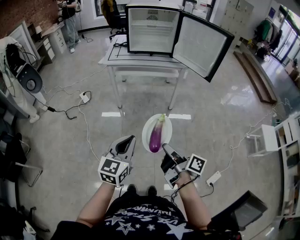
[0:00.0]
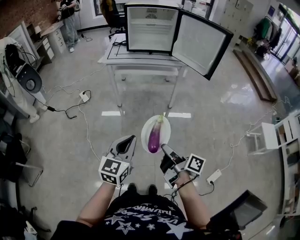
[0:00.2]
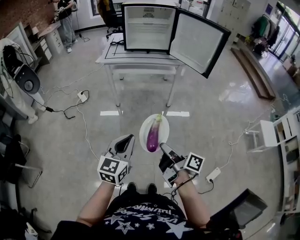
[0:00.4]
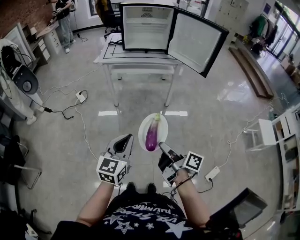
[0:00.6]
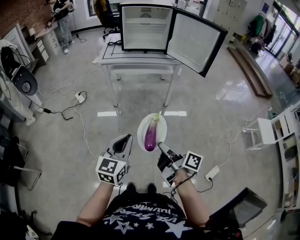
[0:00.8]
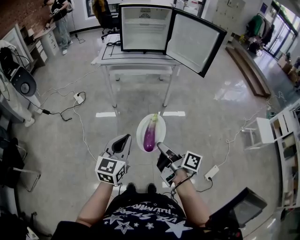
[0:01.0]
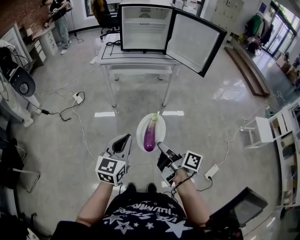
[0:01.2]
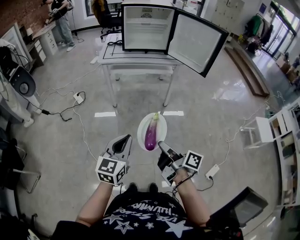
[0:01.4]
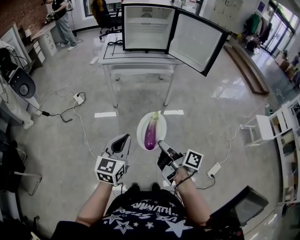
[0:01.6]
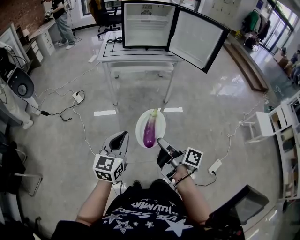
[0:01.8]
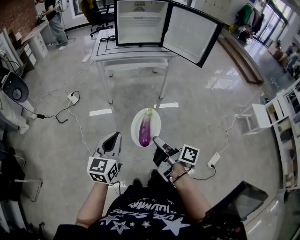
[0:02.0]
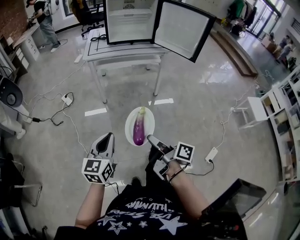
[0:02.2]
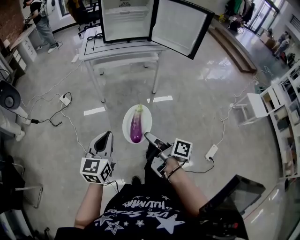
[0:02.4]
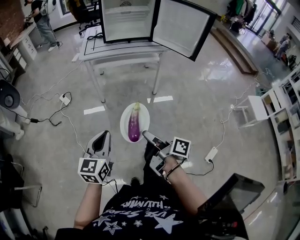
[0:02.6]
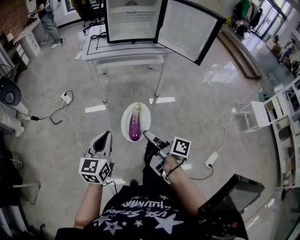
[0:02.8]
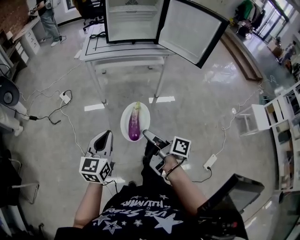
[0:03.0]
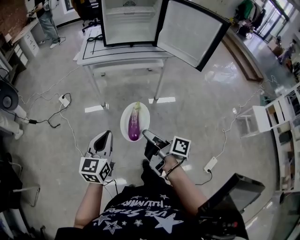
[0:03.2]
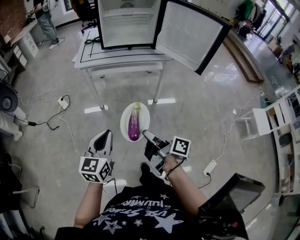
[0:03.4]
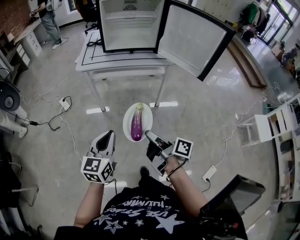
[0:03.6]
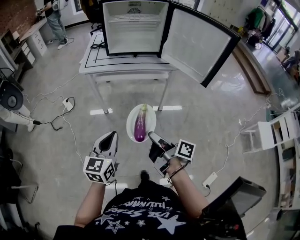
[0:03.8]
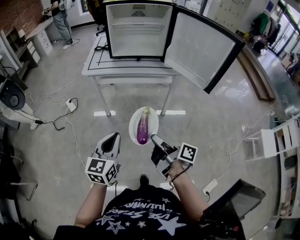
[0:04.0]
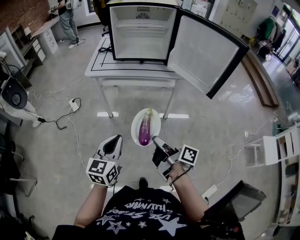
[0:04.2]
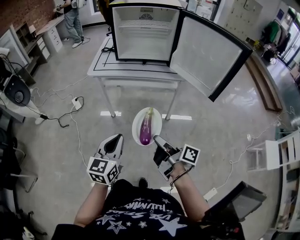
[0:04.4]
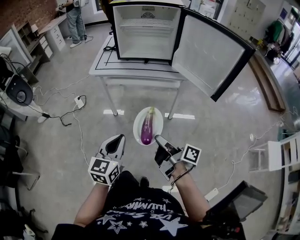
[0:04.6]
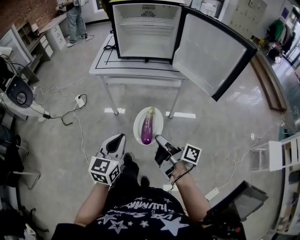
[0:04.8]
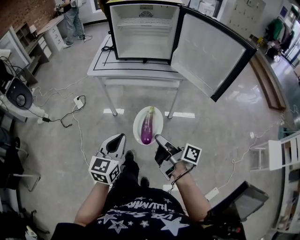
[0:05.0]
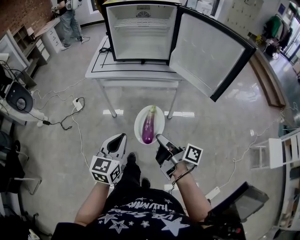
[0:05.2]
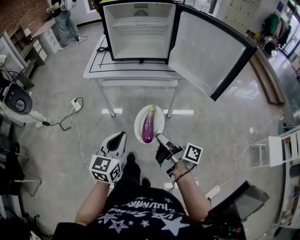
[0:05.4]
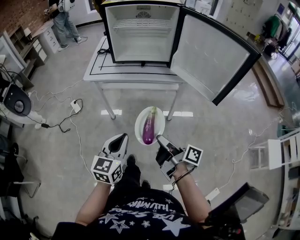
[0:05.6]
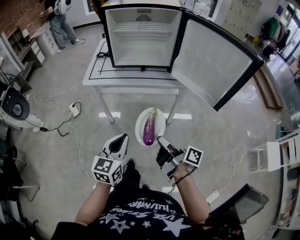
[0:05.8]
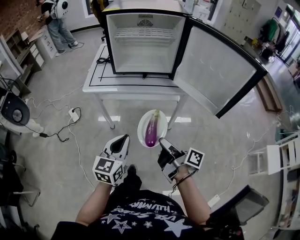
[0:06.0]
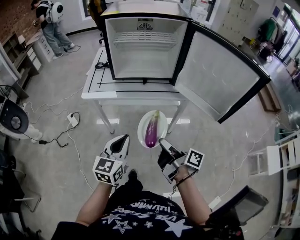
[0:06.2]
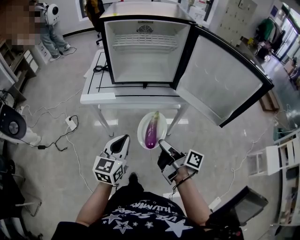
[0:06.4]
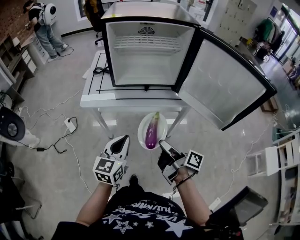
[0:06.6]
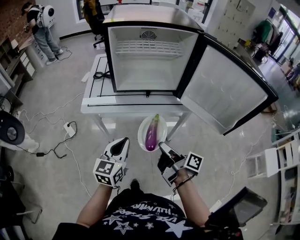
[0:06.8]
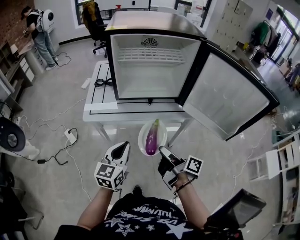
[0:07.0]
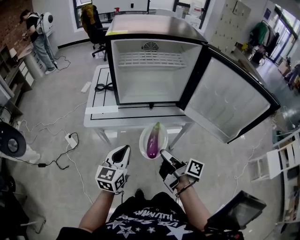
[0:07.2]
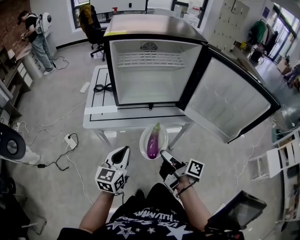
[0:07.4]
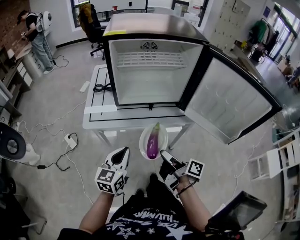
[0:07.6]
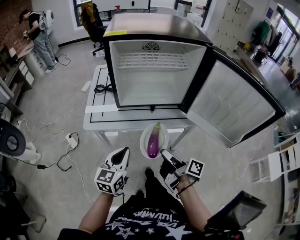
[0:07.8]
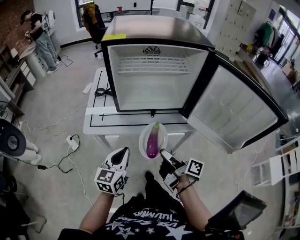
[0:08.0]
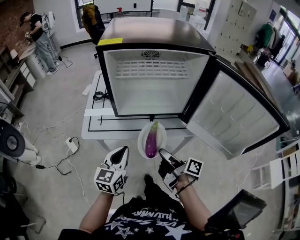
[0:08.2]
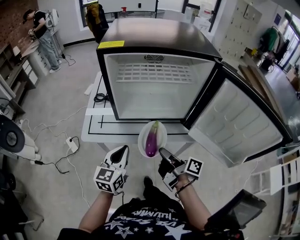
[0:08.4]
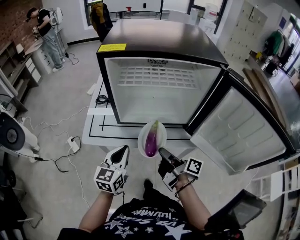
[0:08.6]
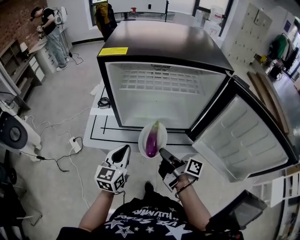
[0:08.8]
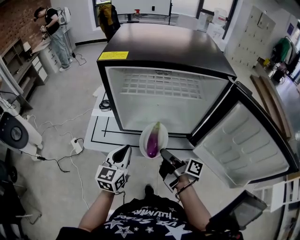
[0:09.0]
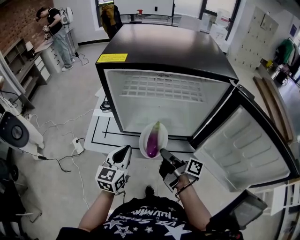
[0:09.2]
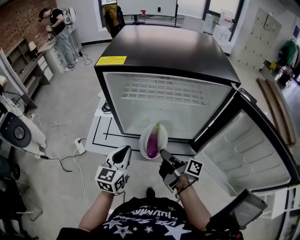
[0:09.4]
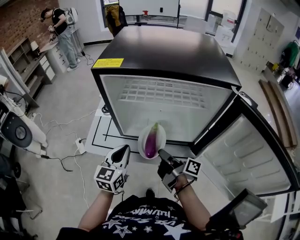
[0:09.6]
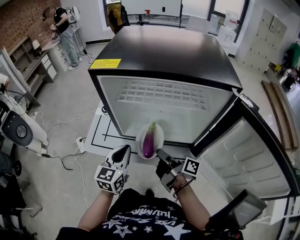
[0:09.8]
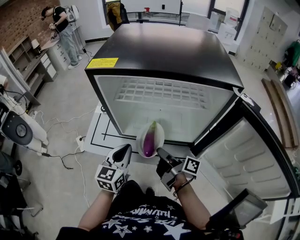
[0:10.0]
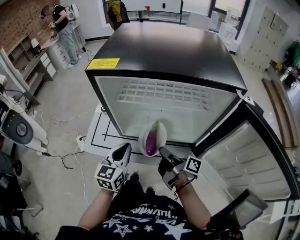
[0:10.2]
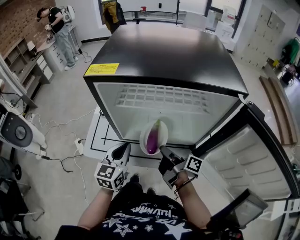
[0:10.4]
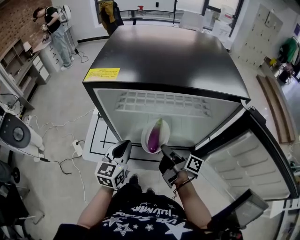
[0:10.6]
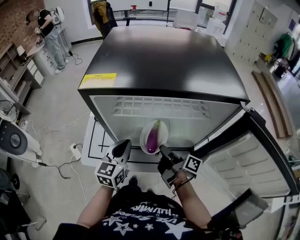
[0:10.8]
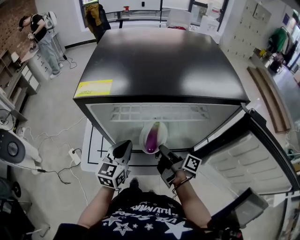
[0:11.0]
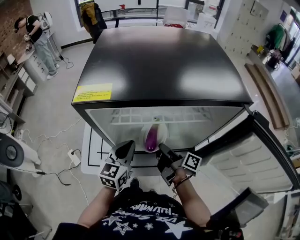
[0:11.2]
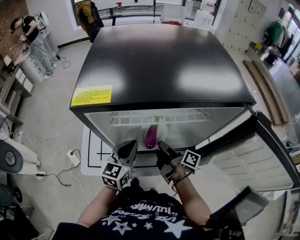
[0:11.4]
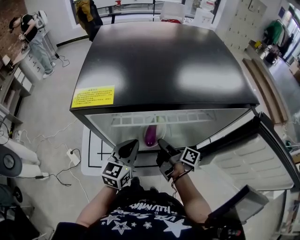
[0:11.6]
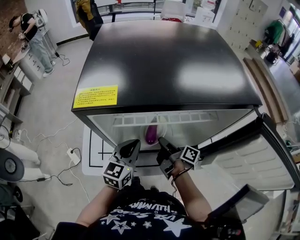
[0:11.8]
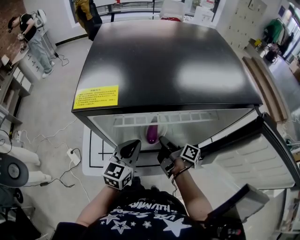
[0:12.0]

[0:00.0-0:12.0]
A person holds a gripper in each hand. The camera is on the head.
0:00.0 to 0:01.6: The left gripper ends up about 5 cm from where it was.
0:01.6 to 0:03.0: The left gripper ends up roughly 10 cm from where it was.
0:03.0 to 0:04.4: The left gripper shifts by about 15 cm.
0:04.4 to 0:06.0: The left gripper changes place by approximately 15 cm.
0:06.0 to 0:07.6: The left gripper shifts by roughly 20 cm.
0:07.6 to 0:09.0: The left gripper moves approximately 15 cm.
0:09.0 to 0:10.4: The left gripper changes place by about 10 cm.
0:10.4 to 0:12.0: The left gripper moves some 10 cm.

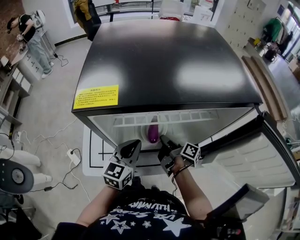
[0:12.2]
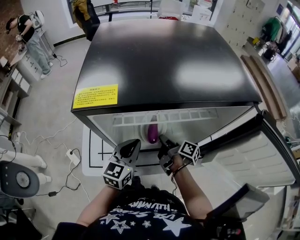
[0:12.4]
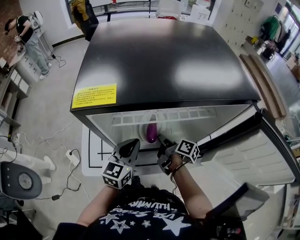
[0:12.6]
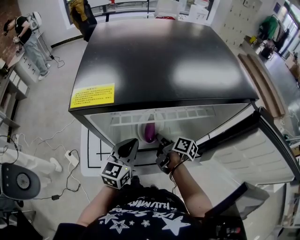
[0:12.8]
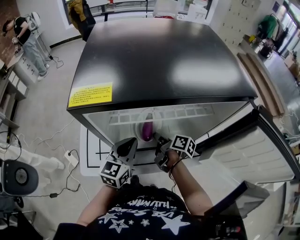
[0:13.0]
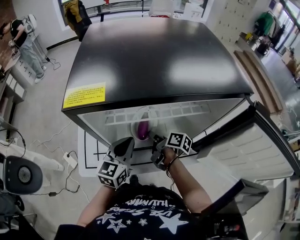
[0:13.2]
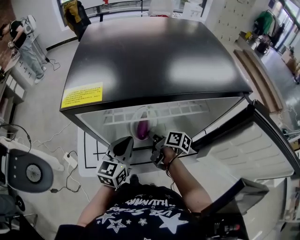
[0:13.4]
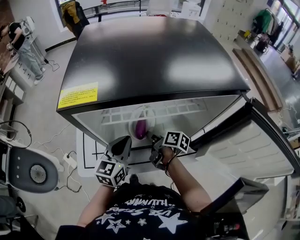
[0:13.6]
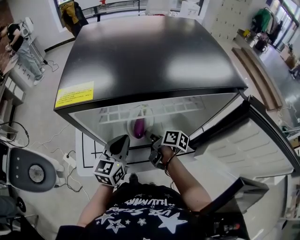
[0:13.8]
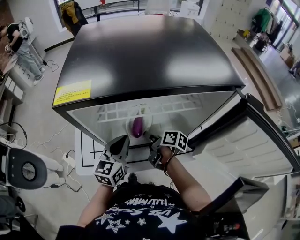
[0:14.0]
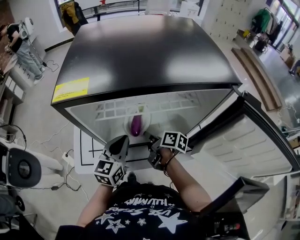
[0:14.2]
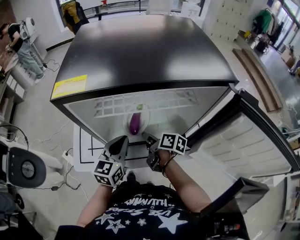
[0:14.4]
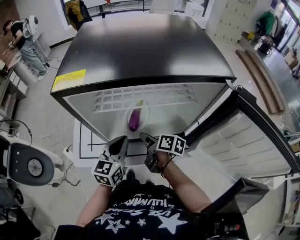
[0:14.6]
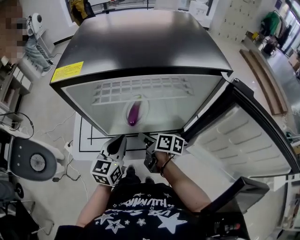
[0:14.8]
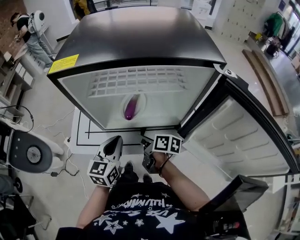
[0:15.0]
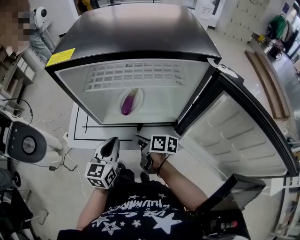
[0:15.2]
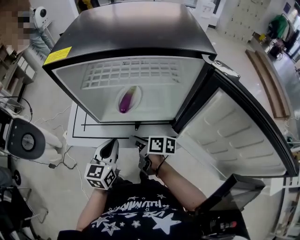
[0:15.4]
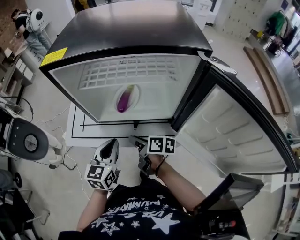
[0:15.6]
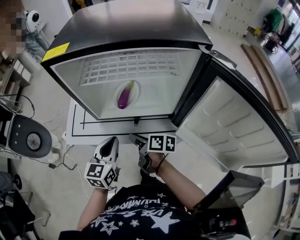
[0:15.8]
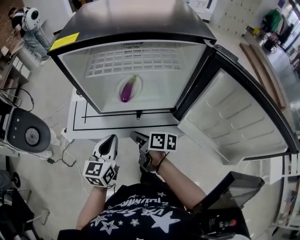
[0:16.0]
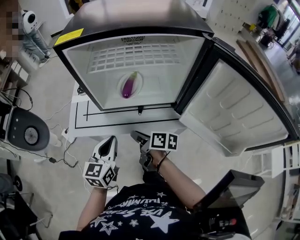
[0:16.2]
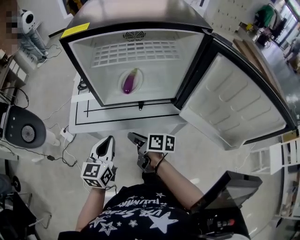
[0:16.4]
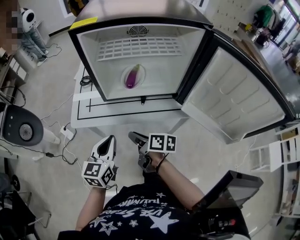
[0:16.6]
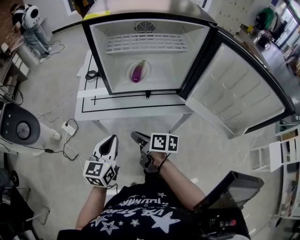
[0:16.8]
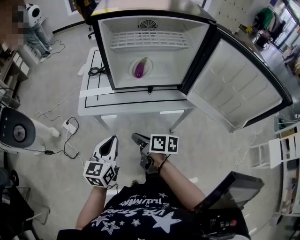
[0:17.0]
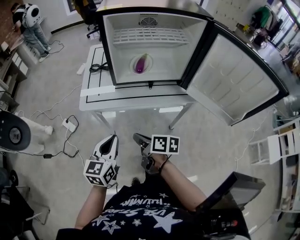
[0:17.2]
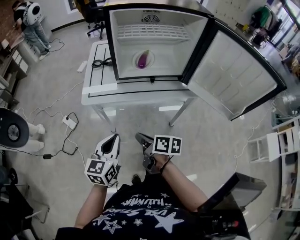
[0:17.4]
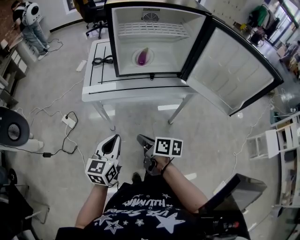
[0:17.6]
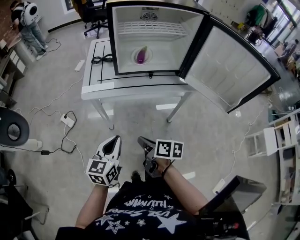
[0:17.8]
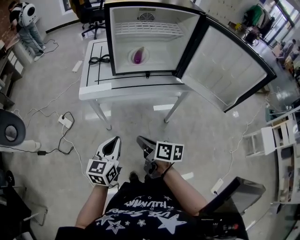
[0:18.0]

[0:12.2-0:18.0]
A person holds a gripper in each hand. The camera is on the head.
0:13.6 to 0:15.0: The left gripper changes place by approximately 10 cm.
0:15.0 to 0:16.6: The left gripper ends up about 15 cm from where it was.
0:16.6 to 0:18.0: The left gripper ends up approximately 20 cm from where it was.

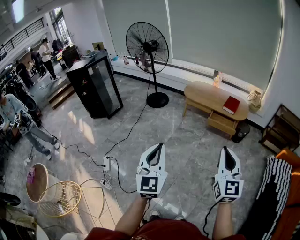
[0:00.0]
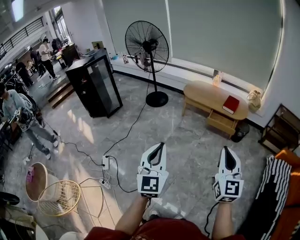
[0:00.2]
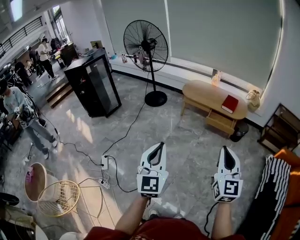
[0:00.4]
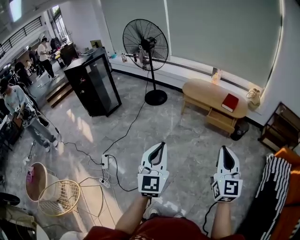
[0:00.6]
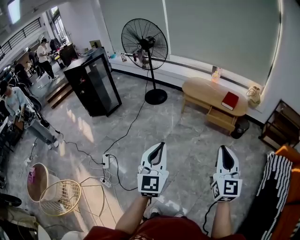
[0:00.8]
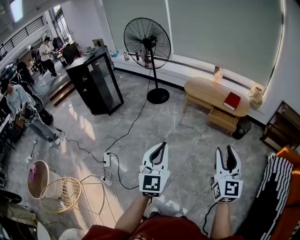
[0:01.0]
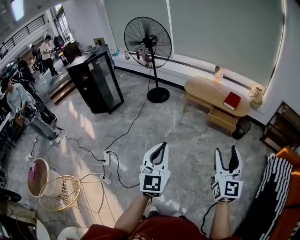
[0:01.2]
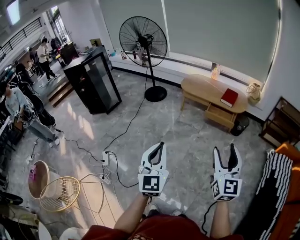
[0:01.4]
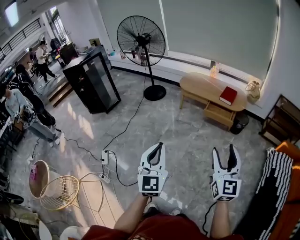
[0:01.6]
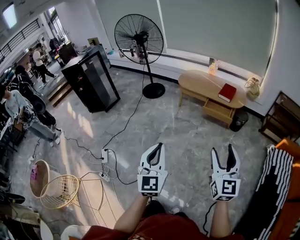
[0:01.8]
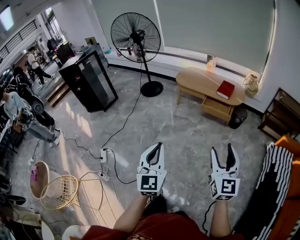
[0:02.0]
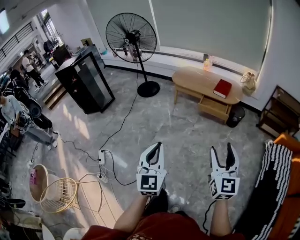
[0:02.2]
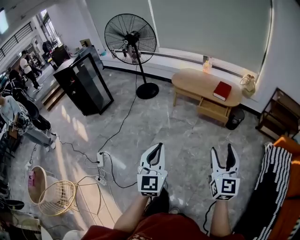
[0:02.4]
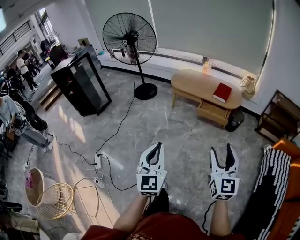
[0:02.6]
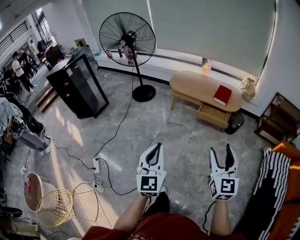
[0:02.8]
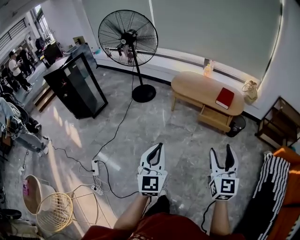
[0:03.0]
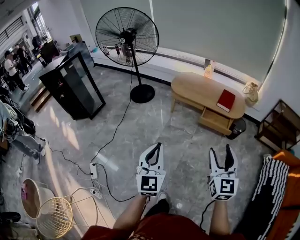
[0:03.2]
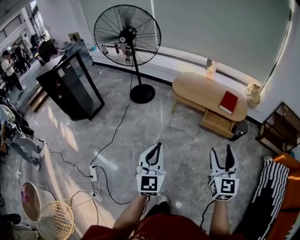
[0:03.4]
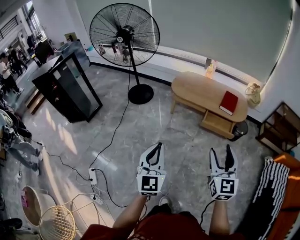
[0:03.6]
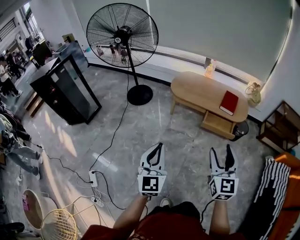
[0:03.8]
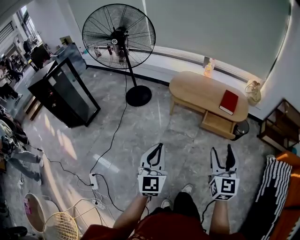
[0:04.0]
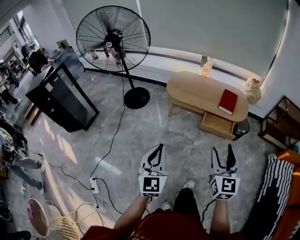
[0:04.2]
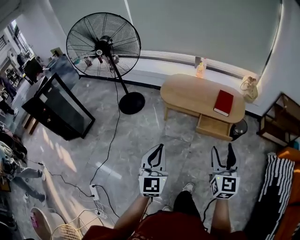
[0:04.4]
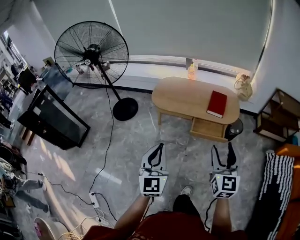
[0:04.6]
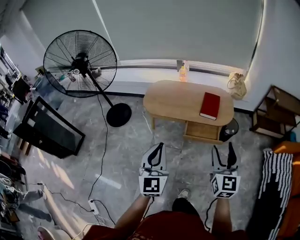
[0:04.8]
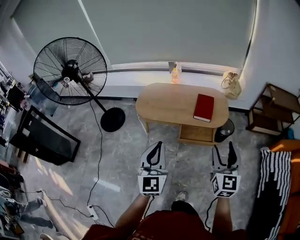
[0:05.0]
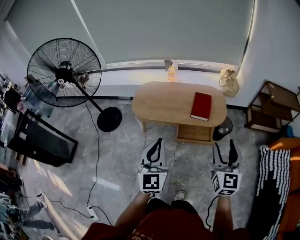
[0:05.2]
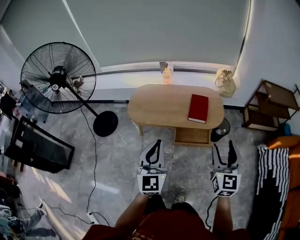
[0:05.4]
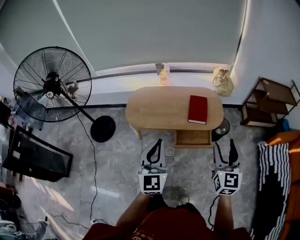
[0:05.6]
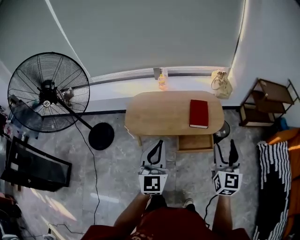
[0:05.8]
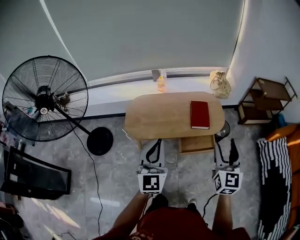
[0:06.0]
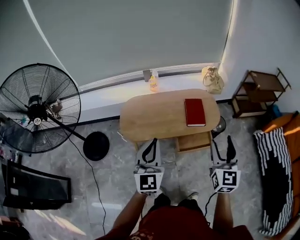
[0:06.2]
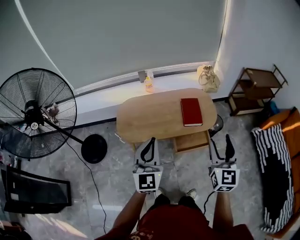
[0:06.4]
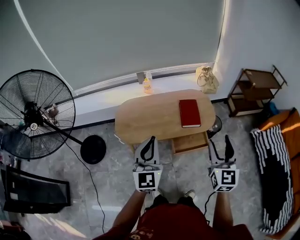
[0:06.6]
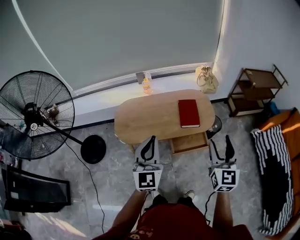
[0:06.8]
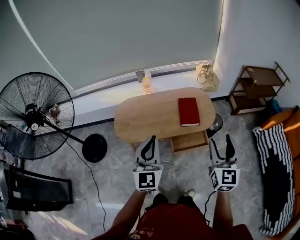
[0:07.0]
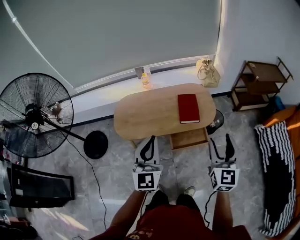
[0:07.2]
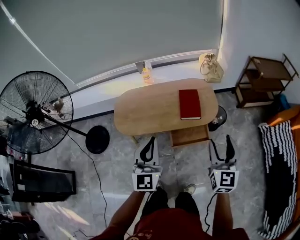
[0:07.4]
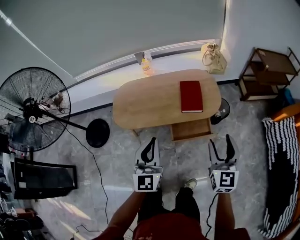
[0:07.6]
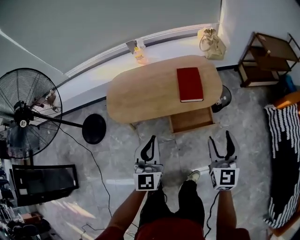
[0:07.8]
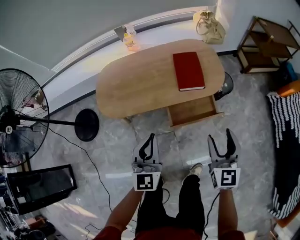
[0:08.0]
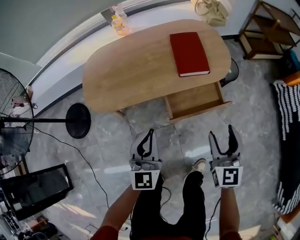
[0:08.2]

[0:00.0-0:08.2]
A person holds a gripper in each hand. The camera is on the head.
0:00.0 to 0:01.6: Both grippers travel together to the right, about 10 cm. The right gripper opens up.
0:01.6 to 0:03.2: Both grippers move forward, about 25 cm.
0:03.2 to 0:05.0: Both grippers move forward and to the right, about 40 cm.
0:05.0 to 0:06.6: Both grippers move forward and to the left, roughly 20 cm.
0:06.6 to 0:08.2: Both grippers move downward, approximately 40 cm.
